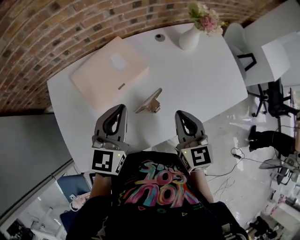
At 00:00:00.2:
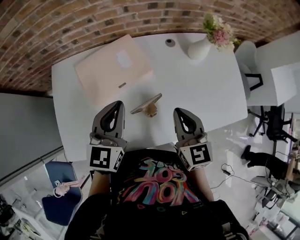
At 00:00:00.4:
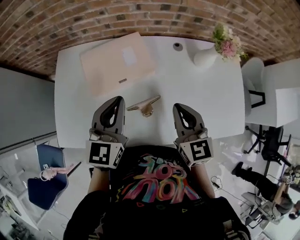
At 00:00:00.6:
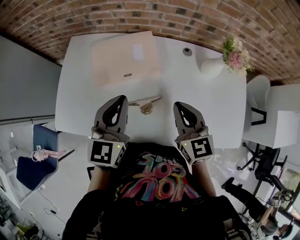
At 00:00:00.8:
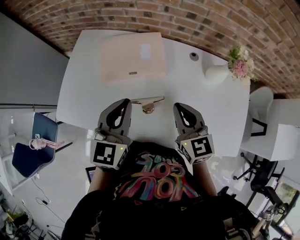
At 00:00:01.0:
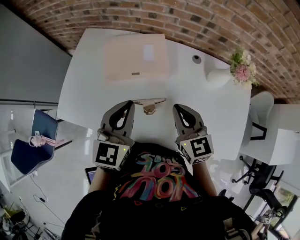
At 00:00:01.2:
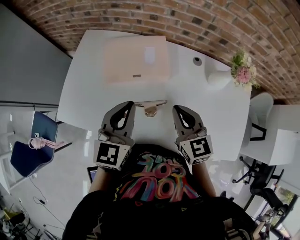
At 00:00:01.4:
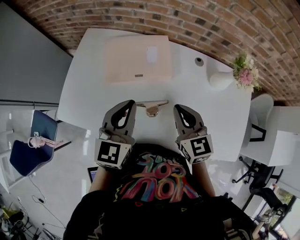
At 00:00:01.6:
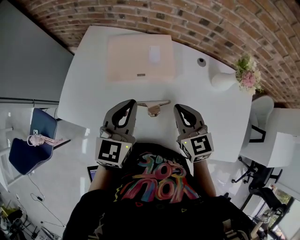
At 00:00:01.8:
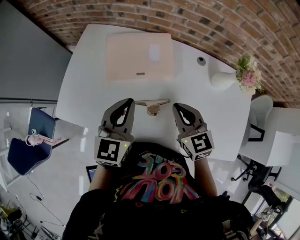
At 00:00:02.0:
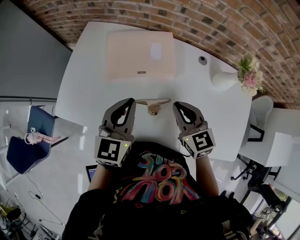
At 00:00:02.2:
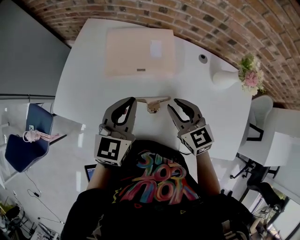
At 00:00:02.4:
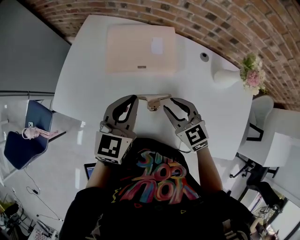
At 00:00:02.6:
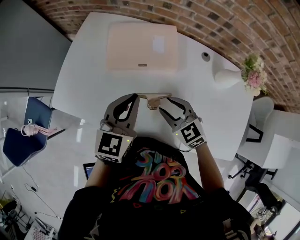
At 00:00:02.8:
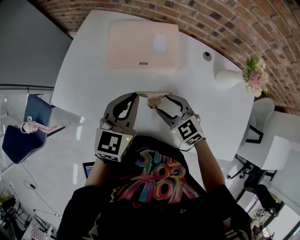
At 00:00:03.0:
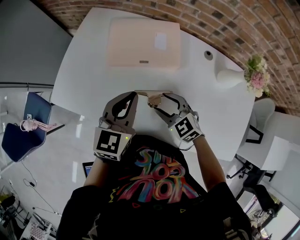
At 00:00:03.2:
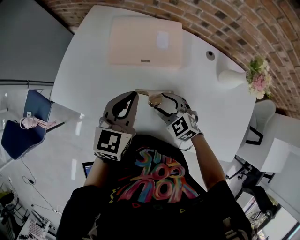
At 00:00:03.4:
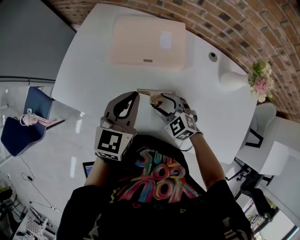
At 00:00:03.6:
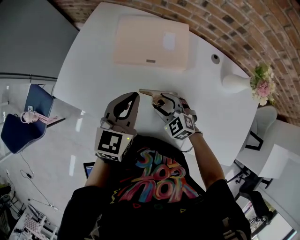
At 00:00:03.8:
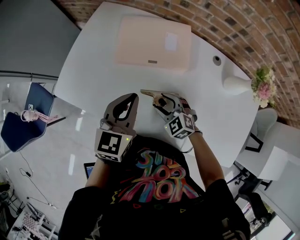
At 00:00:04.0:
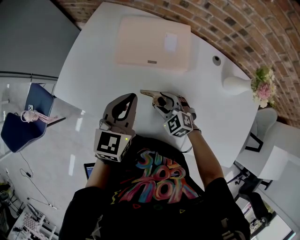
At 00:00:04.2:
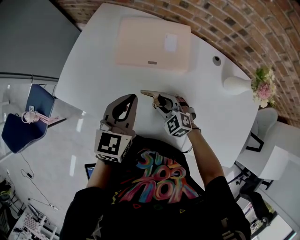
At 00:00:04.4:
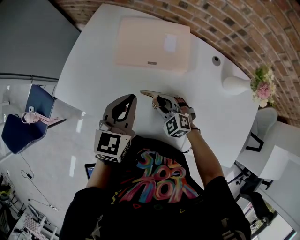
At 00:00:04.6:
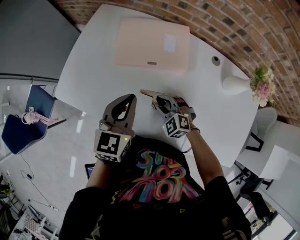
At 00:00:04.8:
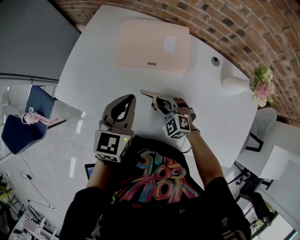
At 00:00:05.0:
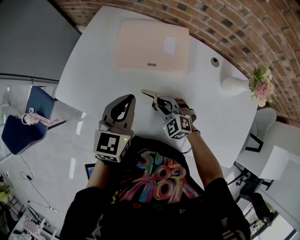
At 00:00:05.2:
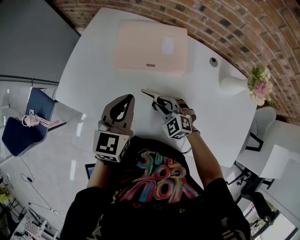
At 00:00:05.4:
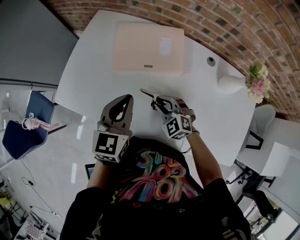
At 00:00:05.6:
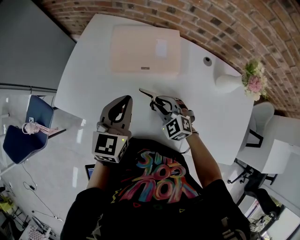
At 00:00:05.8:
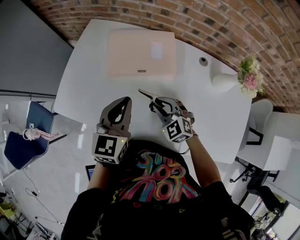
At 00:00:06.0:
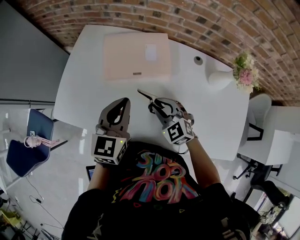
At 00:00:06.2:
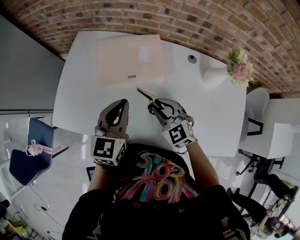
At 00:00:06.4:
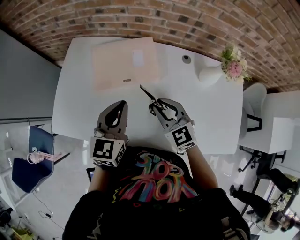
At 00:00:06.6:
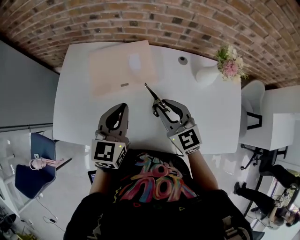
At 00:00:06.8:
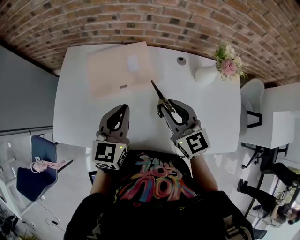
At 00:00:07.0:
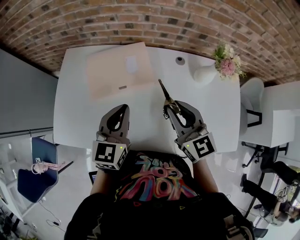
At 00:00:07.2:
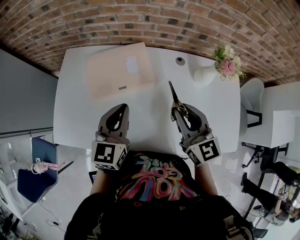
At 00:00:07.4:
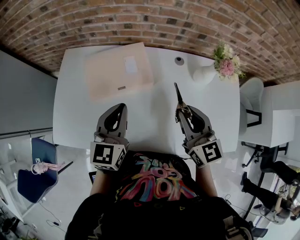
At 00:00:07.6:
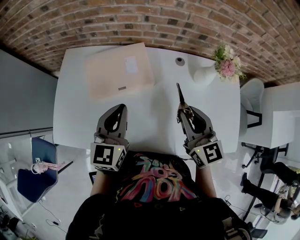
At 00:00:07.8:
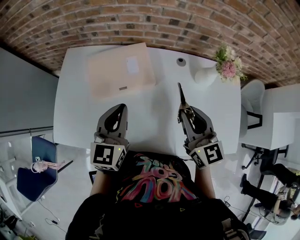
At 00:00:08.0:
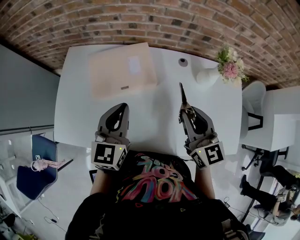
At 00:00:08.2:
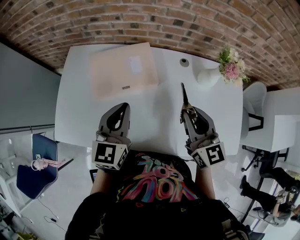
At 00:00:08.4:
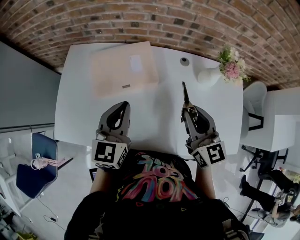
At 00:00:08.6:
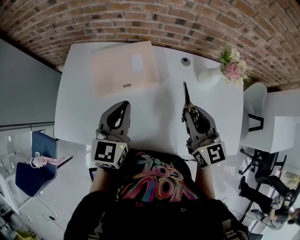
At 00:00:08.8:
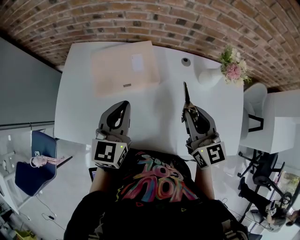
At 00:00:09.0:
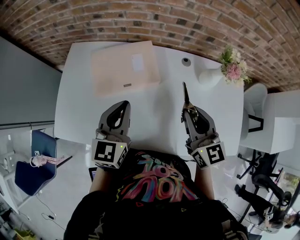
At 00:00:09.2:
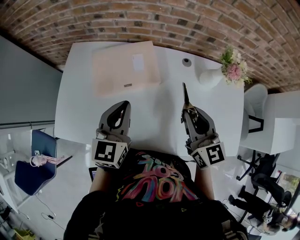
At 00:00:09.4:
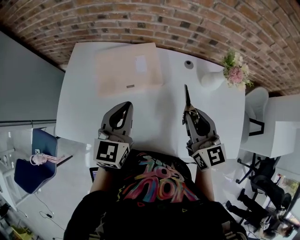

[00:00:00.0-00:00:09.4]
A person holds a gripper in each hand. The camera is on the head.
00:00:00.0 to 00:00:01.6: The right gripper changes place by some 10 cm, and swivels roughly 40 degrees, while the left gripper rotates approximately 40 degrees.
00:00:01.6 to 00:00:03.2: The right gripper moves downward and to the left, about 15 cm, turns by about 40 degrees, and opens up; the left gripper heads downward, covering about 5 cm.
00:00:03.2 to 00:00:04.8: The right gripper ends up approximately 5 cm from where it was, and closes.
00:00:04.8 to 00:00:06.2: The right gripper shifts some 10 cm upward, and rotates roughly 30 degrees.
00:00:06.2 to 00:00:07.8: The right gripper is displaced upward and to the right by approximately 20 cm, and turns by some 40 degrees.
00:00:07.8 to 00:00:09.4: There are only small adjustments of the grippers.

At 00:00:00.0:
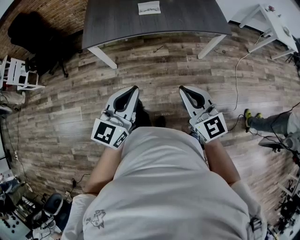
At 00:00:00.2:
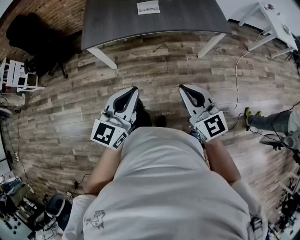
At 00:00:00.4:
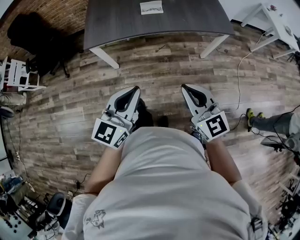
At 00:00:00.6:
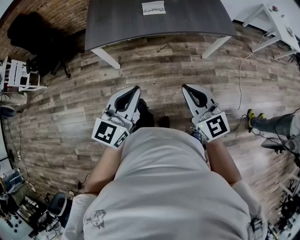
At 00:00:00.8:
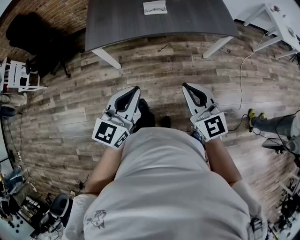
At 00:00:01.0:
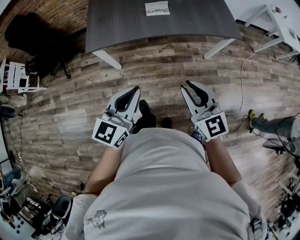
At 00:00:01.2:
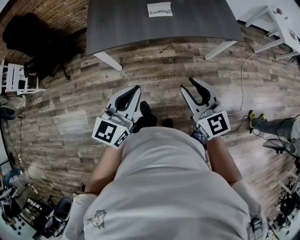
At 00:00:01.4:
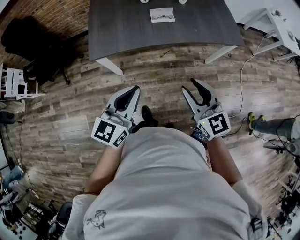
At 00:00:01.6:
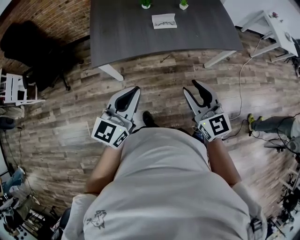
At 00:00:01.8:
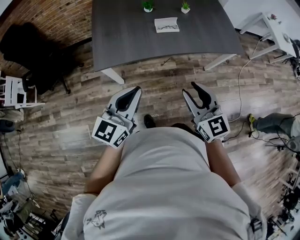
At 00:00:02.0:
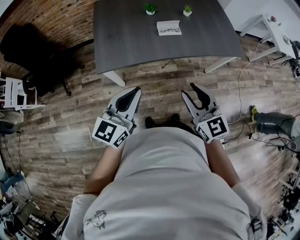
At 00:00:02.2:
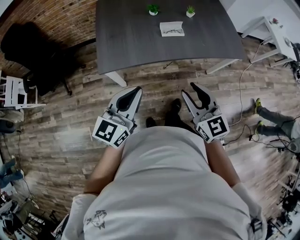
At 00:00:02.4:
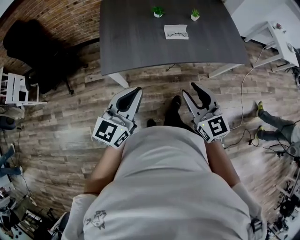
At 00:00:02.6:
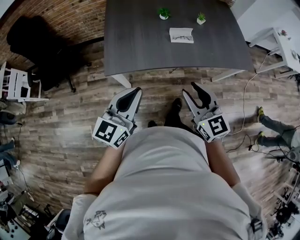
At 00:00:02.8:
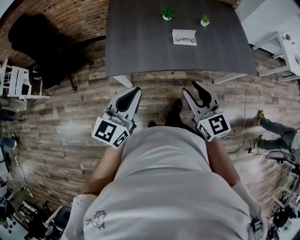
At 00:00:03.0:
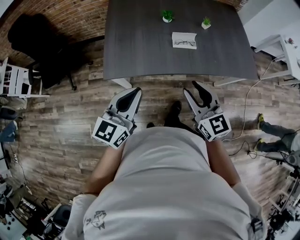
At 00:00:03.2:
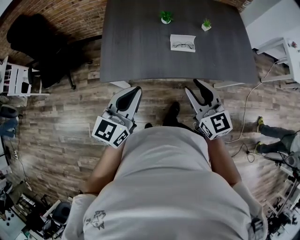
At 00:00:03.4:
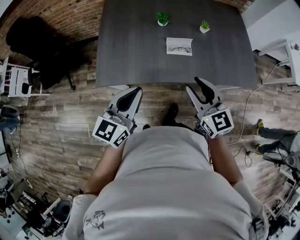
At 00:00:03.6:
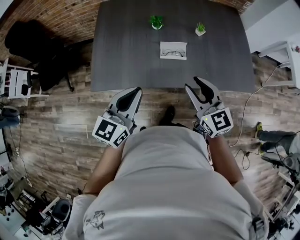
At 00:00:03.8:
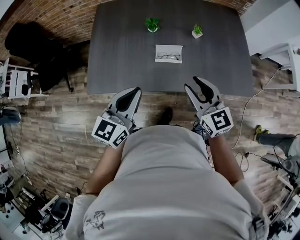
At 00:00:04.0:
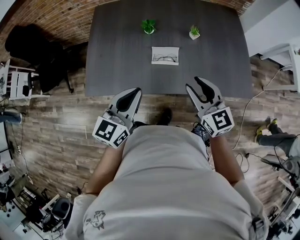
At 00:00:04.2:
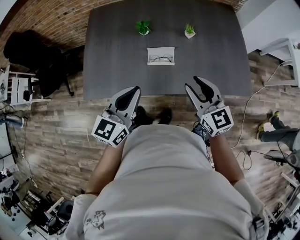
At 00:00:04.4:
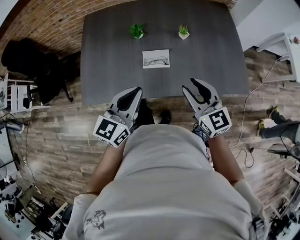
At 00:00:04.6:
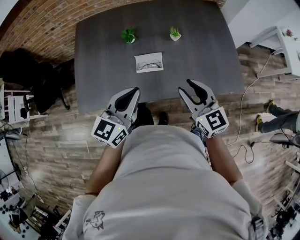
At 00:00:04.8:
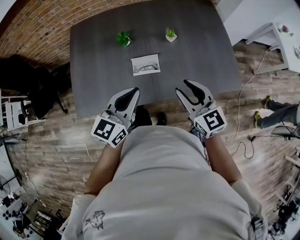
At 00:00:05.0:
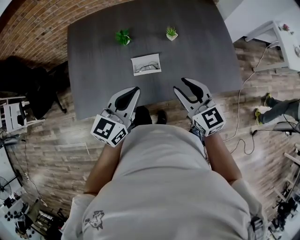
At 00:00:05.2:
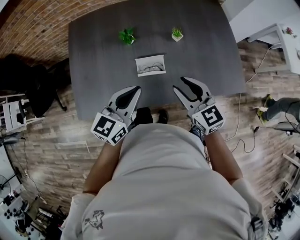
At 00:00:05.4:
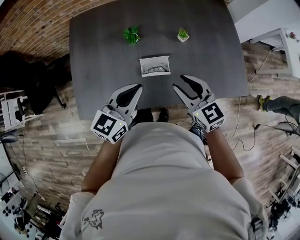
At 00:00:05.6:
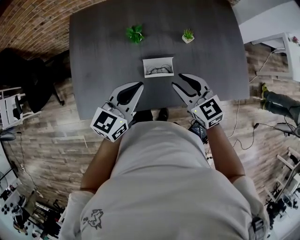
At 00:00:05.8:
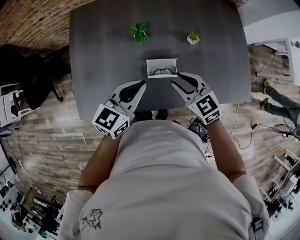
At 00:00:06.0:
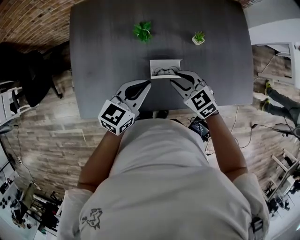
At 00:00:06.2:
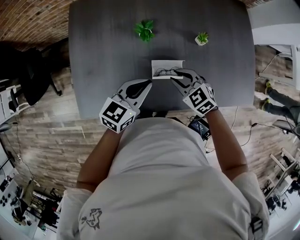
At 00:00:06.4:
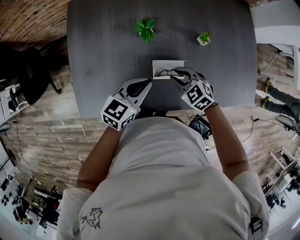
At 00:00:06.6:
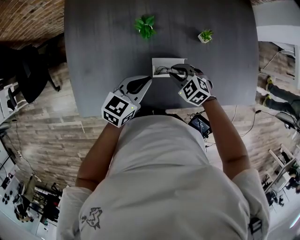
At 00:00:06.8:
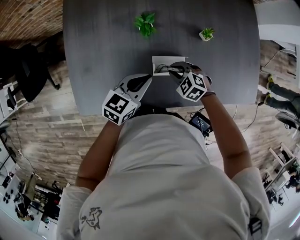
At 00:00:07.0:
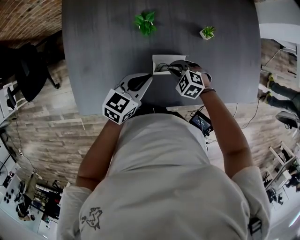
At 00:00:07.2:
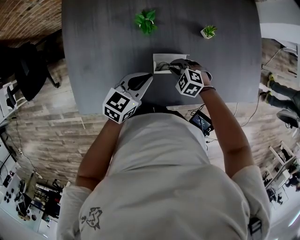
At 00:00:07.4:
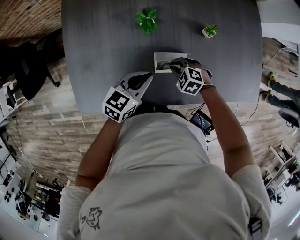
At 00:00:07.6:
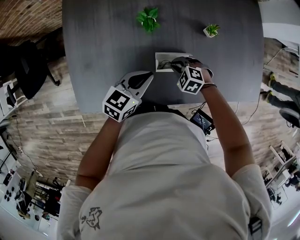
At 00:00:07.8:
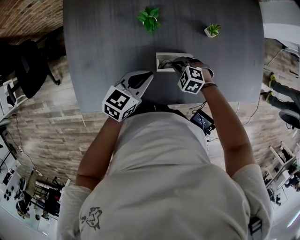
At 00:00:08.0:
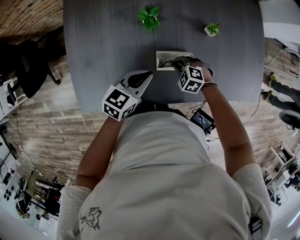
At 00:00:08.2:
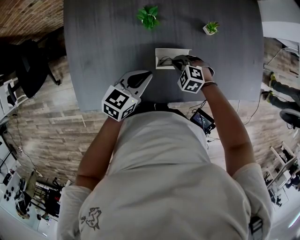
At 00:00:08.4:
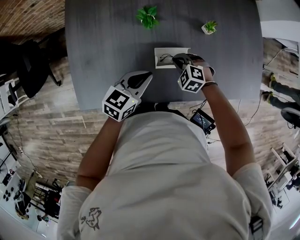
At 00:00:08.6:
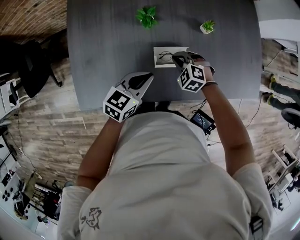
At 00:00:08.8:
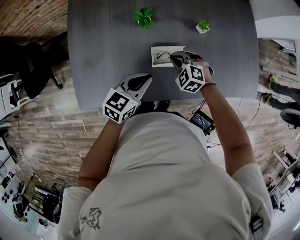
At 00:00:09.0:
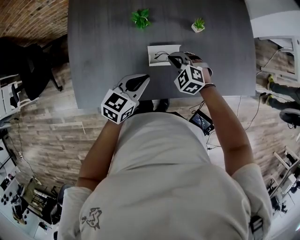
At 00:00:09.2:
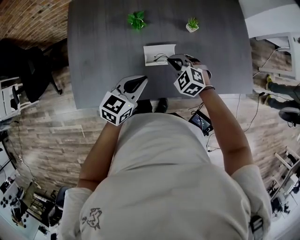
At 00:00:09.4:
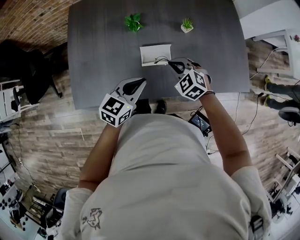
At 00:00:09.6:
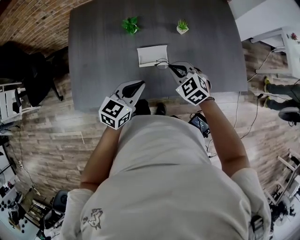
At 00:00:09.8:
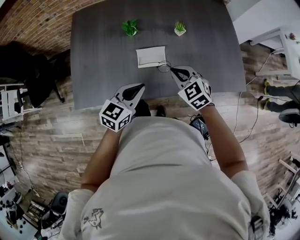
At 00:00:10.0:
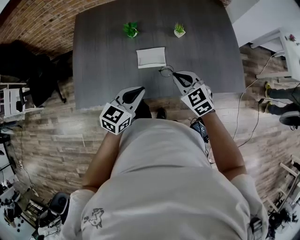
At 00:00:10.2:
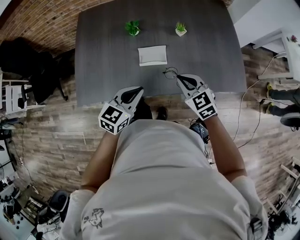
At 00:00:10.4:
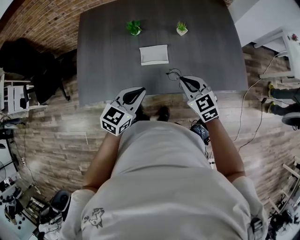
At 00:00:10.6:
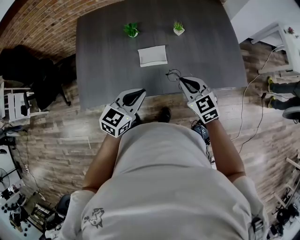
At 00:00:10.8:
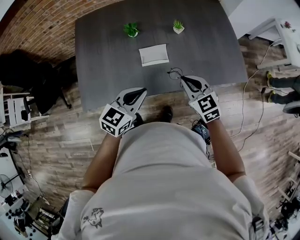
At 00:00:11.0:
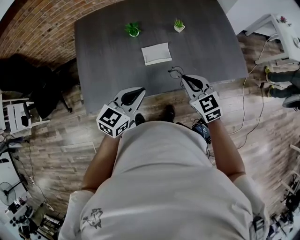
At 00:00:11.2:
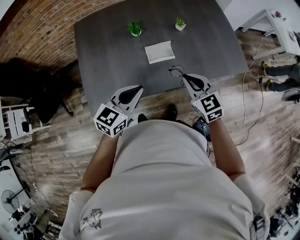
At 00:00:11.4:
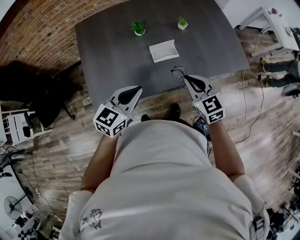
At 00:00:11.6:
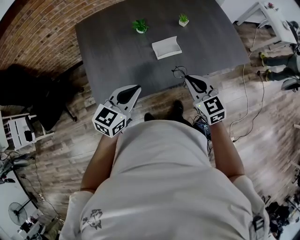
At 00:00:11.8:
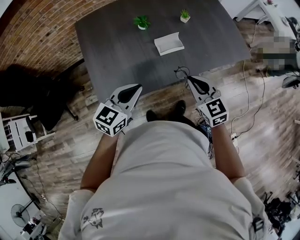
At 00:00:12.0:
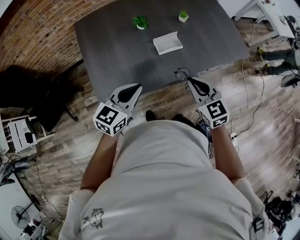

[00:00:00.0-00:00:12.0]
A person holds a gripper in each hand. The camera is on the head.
00:00:00.0 to 00:00:01.6: The two grippers go about 20 cm forward and to the left. The right gripper opens its fingers.
00:00:01.6 to 00:00:03.0: The grippers both shift forward and to the left by some 15 cm.
00:00:03.0 to 00:00:04.4: Both grippers travel together to the right and forward, some 25 cm.
00:00:04.4 to 00:00:06.0: The left gripper is displaced forward and downward by some 20 cm. Meanwhile the right gripper goes roughly 25 cm downward, forward and to the left, and rotates about 30 degrees.
00:00:06.0 to 00:00:07.6: The left gripper is displaced downward by roughly 10 cm. Meanwhile the right gripper is displaced downward by about 20 cm, and swivels approximately 30 degrees.
00:00:07.6 to 00:00:09.0: The right gripper travels upward by some 10 cm. The left gripper moves backward, some 5 cm.
00:00:09.0 to 00:00:10.4: The right gripper heads backward, upward and to the right, covering roughly 20 cm, and swivels approximately 40 degrees. Meanwhile the left gripper is displaced backward and upward by approximately 15 cm.
00:00:10.4 to 00:00:12.0: The right gripper goes some 20 cm backward, to the left and upward, and changes its angle by approximately 20 degrees. Meanwhile the left gripper moves to the left, some 20 cm.

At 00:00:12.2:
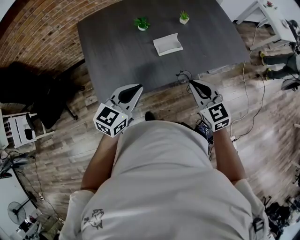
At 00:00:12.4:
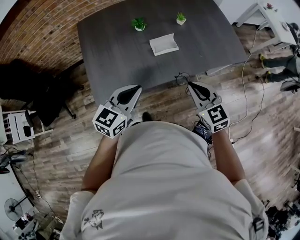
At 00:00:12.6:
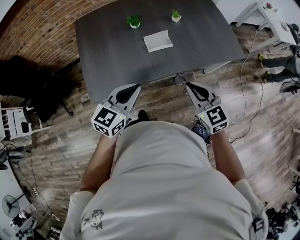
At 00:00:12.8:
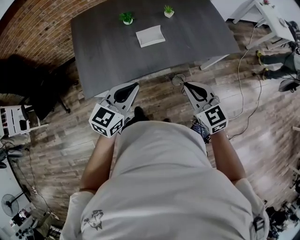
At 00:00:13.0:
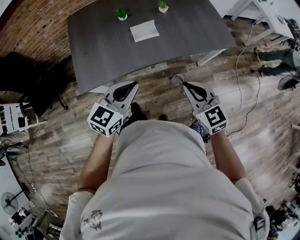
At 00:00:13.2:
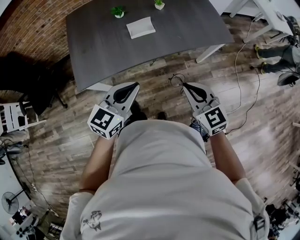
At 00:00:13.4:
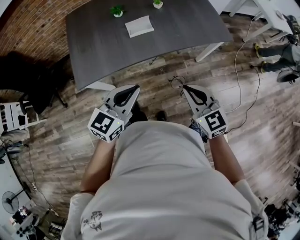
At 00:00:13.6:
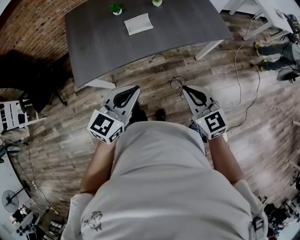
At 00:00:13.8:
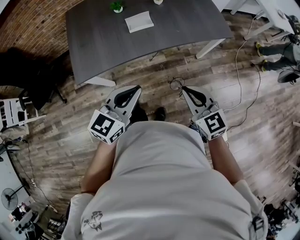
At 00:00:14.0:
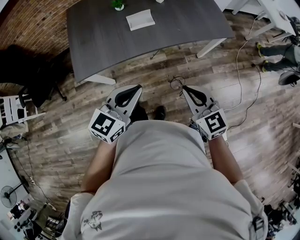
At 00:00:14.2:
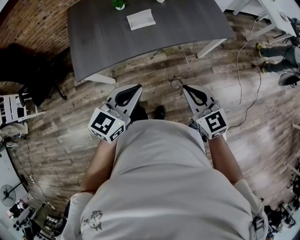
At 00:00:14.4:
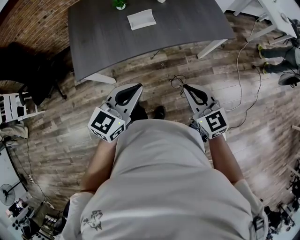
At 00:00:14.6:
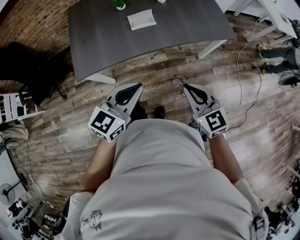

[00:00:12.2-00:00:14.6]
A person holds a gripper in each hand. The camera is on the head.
00:00:12.2 to 00:00:13.4: The two grippers go approximately 20 cm to the right and backward.
00:00:13.4 to 00:00:14.6: There are only small adjustments of the grippers.
